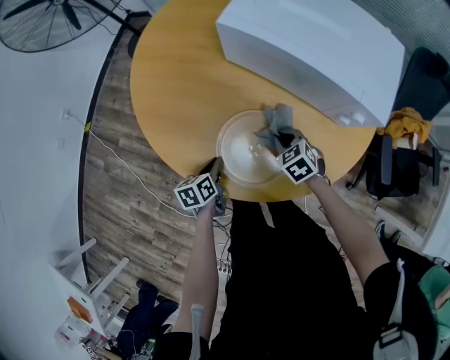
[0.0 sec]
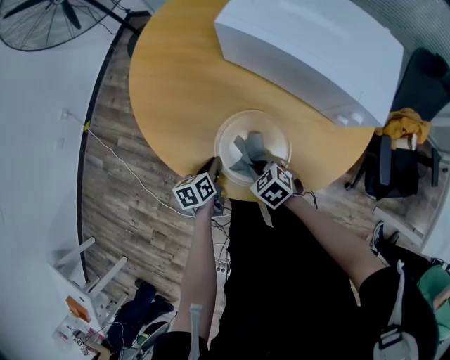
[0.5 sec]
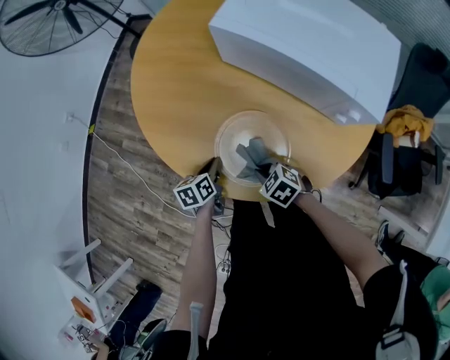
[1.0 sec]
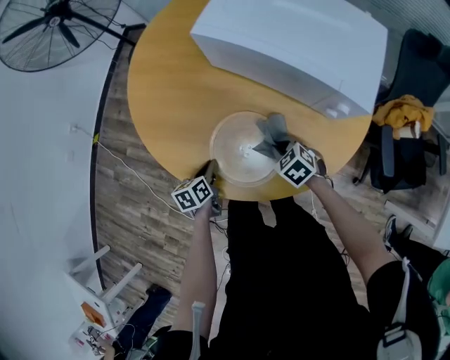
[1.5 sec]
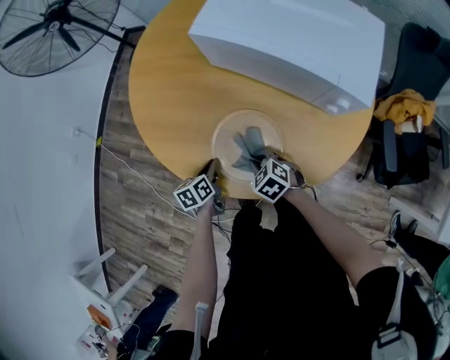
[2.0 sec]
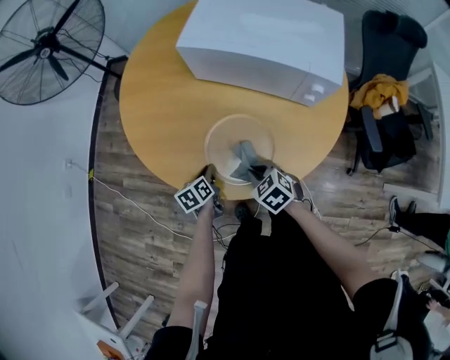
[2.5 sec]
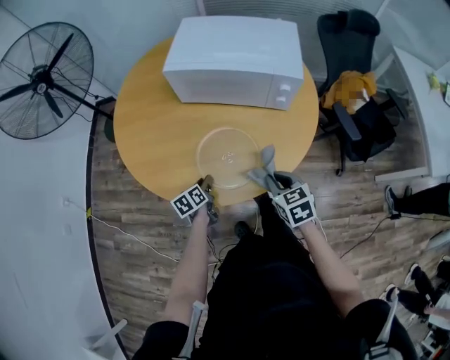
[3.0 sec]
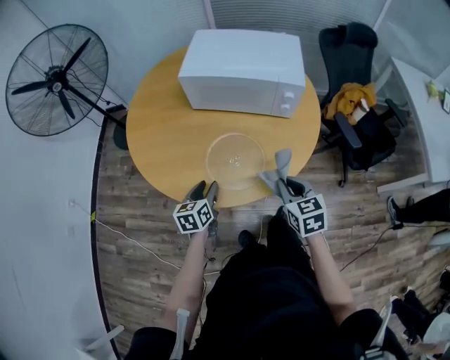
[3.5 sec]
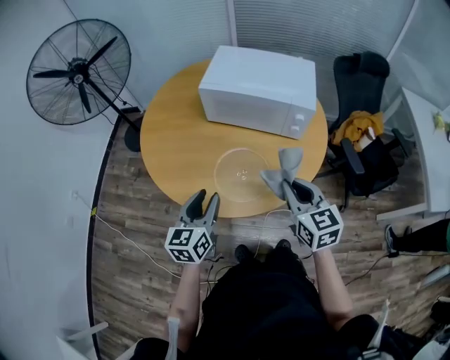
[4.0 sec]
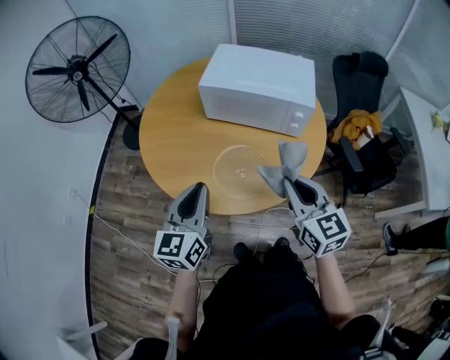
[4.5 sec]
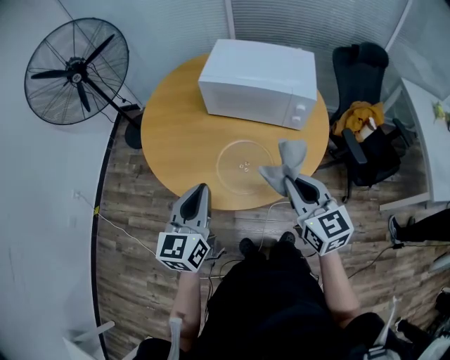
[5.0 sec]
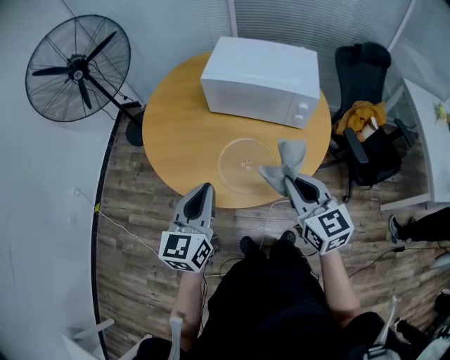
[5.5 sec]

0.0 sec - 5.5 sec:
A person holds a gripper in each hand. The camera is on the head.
0.0 sec - 2.0 sec: The right gripper goes left and right, about 10 cm each way, reversing 2 times.
2.0 sec - 3.5 sec: The right gripper goes approximately 20 cm upward, and turns by about 60 degrees. Meanwhile the left gripper heads upward, covering approximately 15 cm, turns by approximately 30 degrees, and opens.
3.5 sec - 5.5 sec: The left gripper shifts approximately 25 cm upward, turns by about 30 degrees, and closes up; the right gripper moves upward, some 15 cm, and swivels roughly 20 degrees.

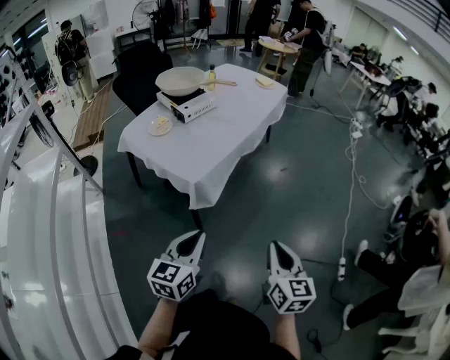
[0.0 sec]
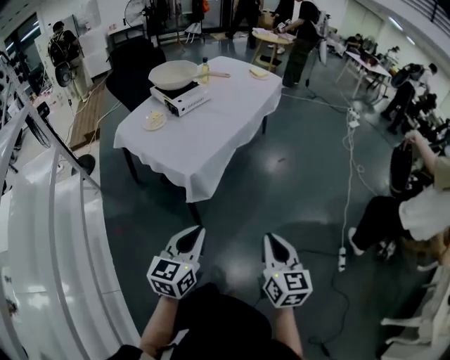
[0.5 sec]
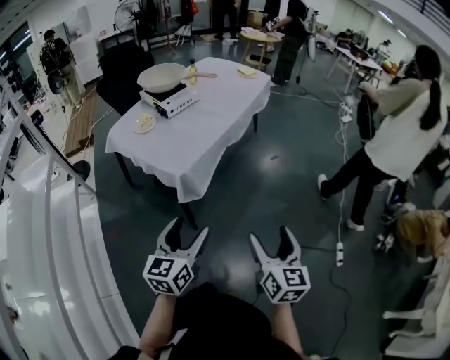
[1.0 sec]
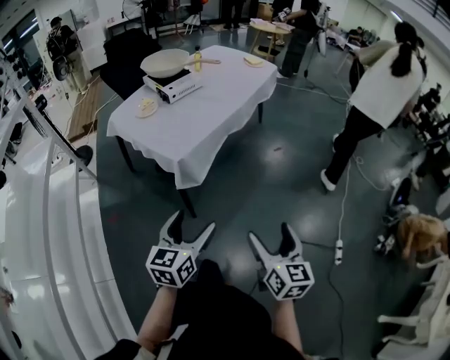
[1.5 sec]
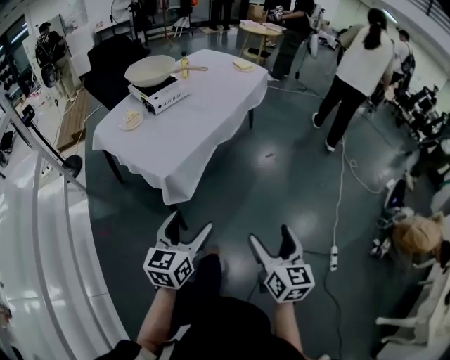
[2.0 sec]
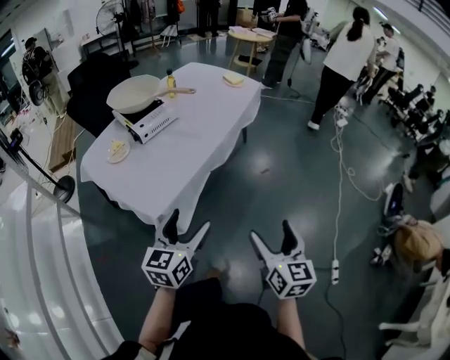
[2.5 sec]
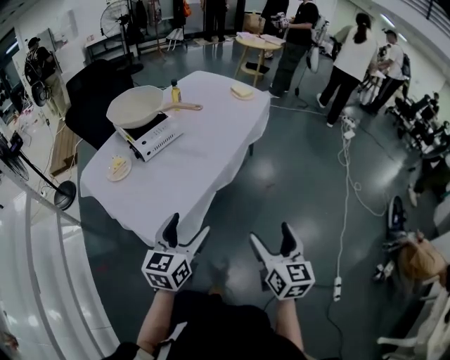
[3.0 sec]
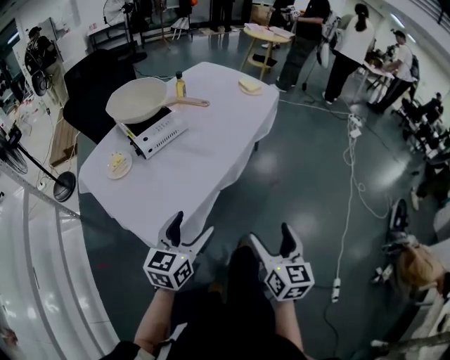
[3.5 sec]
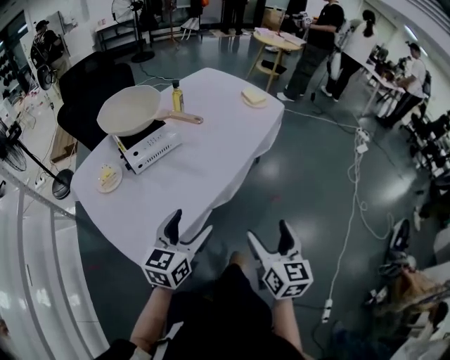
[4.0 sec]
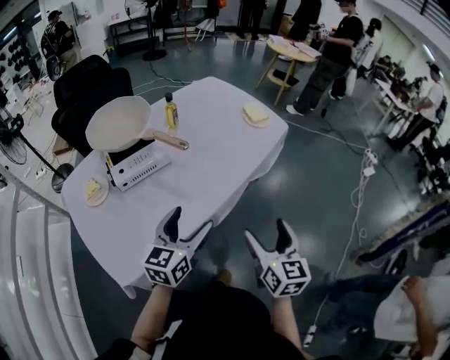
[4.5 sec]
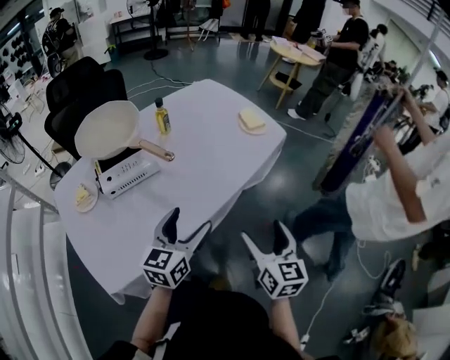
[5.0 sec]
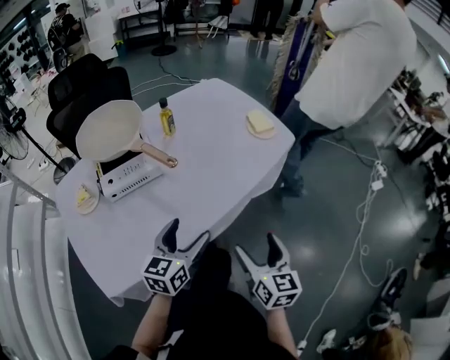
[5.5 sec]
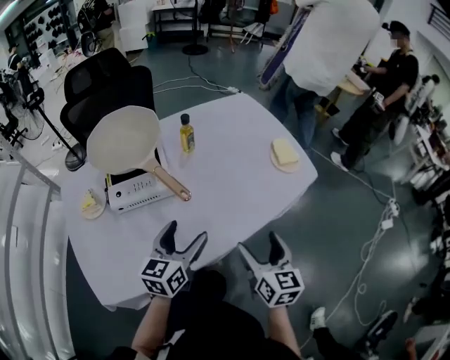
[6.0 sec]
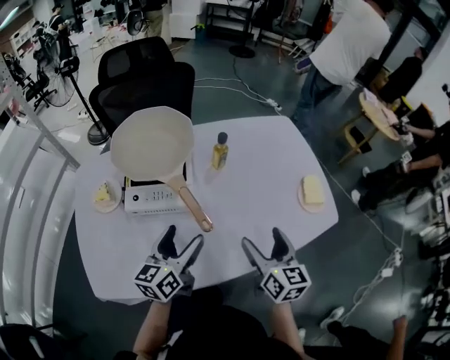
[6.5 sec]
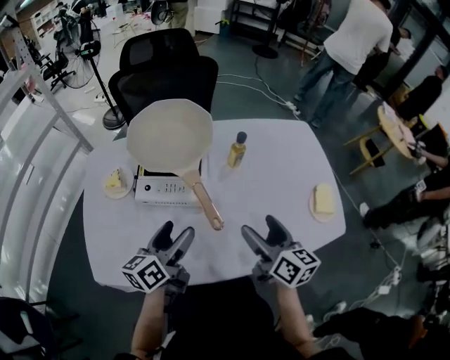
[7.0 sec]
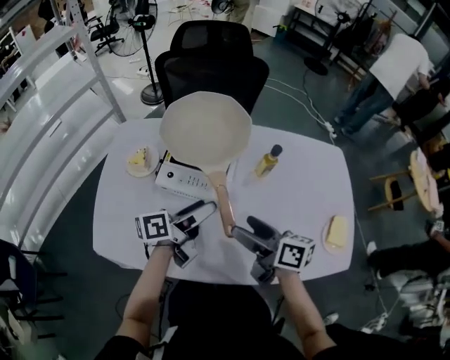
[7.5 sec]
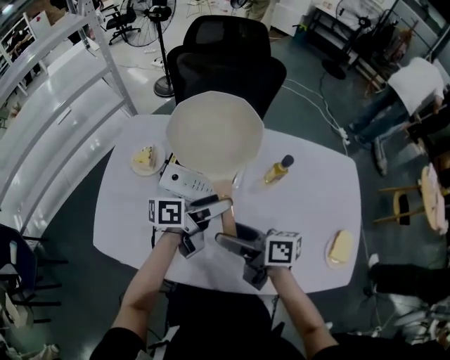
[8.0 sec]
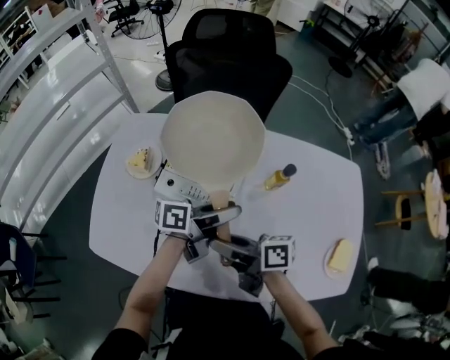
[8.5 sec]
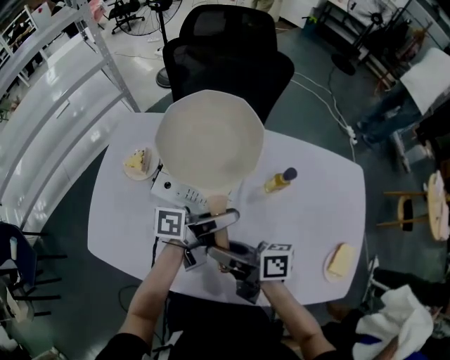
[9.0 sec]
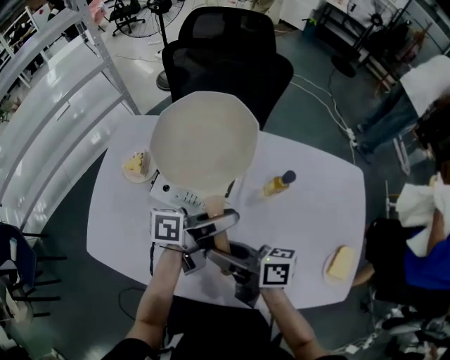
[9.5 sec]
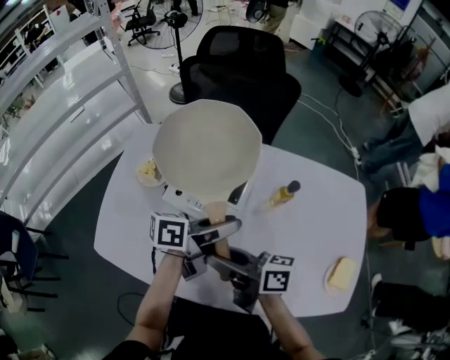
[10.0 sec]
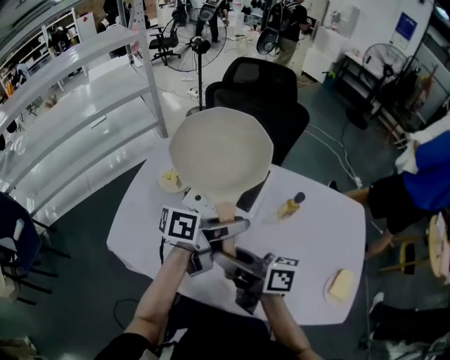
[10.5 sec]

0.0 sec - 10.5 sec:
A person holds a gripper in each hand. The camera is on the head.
0.0 sec - 2.0 sec: The right gripper travels to the right and forward by approximately 10 cm, and opens; the left gripper travels forward and to the right by roughly 10 cm, and opens.
2.0 sec - 4.0 sec: Both grippers are carried forward, some 40 cm.
4.0 sec - 6.5 sec: The left gripper changes place by roughly 35 cm, and rotates about 40 degrees, while the right gripper ends up roughly 50 cm from where it was, and changes its angle by about 40 degrees.
6.5 sec - 8.5 sec: The right gripper moves some 20 cm, swivels about 80 degrees, and closes; the left gripper changes place by approximately 15 cm, and changes its angle by some 40 degrees.
8.5 sec - 10.5 sec: The two grippers go roughly 10 cm upward.

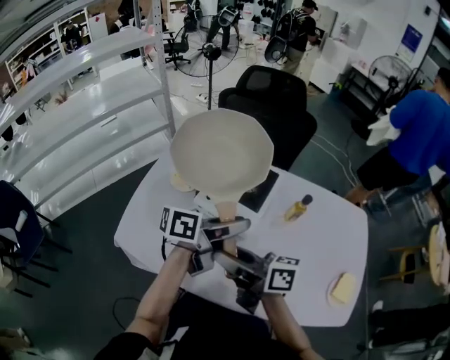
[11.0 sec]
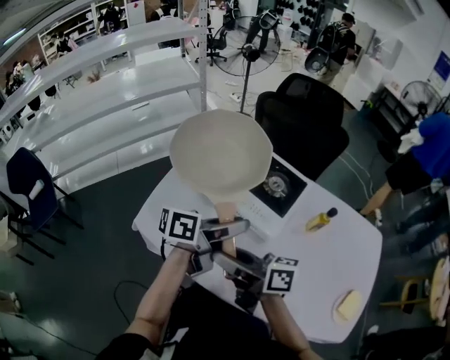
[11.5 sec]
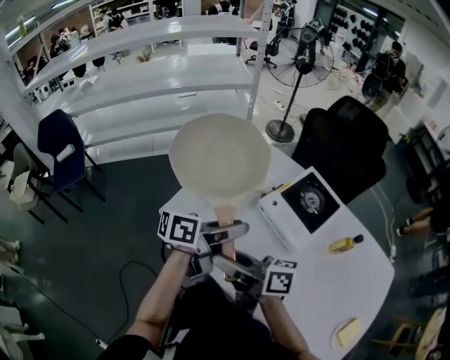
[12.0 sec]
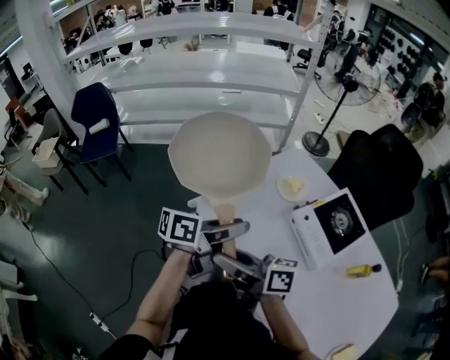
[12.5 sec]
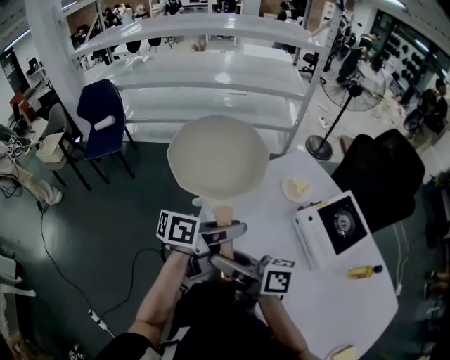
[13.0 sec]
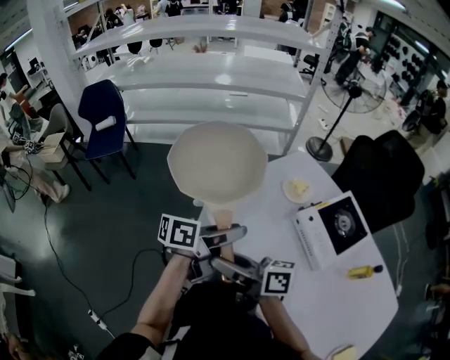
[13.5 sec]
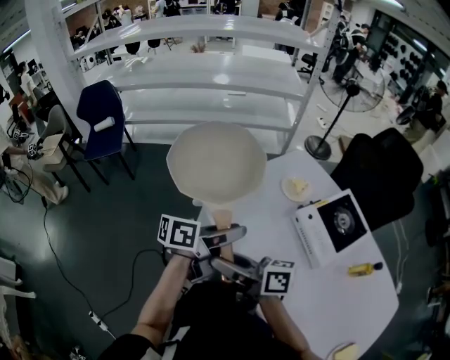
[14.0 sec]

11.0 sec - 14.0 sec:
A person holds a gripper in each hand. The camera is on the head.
11.0 sec - 12.5 sec: The left gripper changes place by some 30 cm, and rotates some 40 degrees. The right gripper moves approximately 25 cm, and rotates about 40 degrees.
12.5 sec - 14.0 sec: The grippers move only a little.

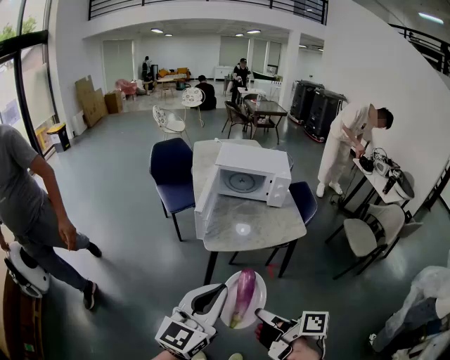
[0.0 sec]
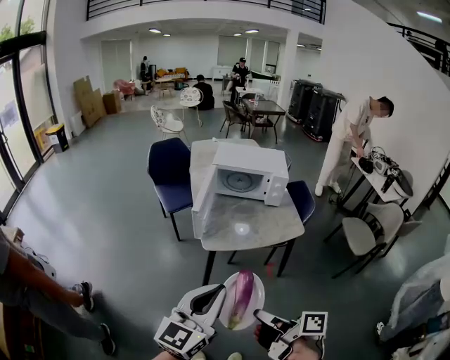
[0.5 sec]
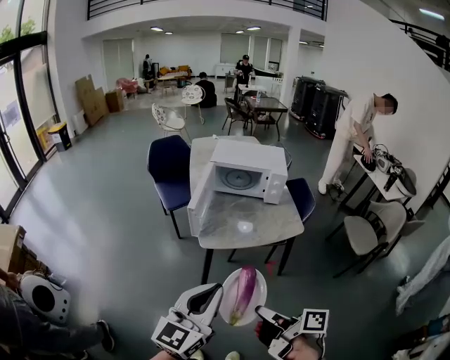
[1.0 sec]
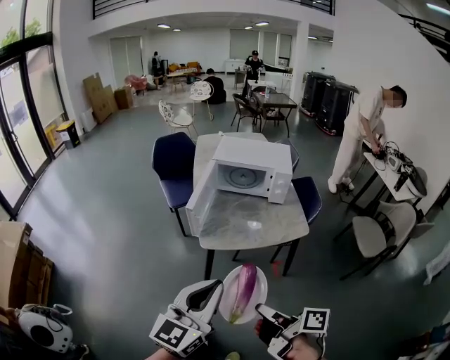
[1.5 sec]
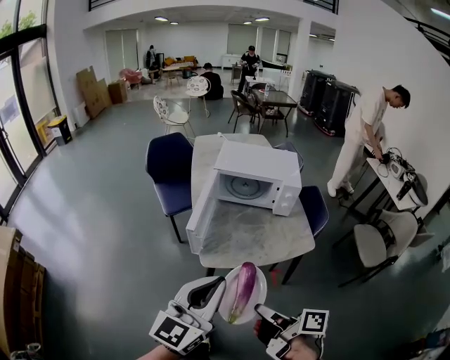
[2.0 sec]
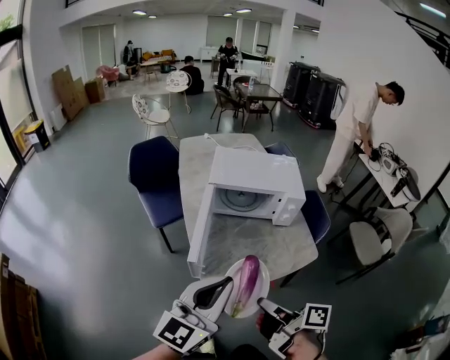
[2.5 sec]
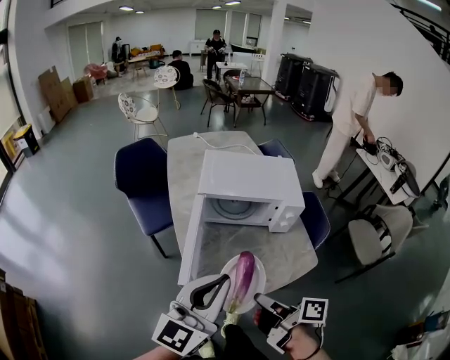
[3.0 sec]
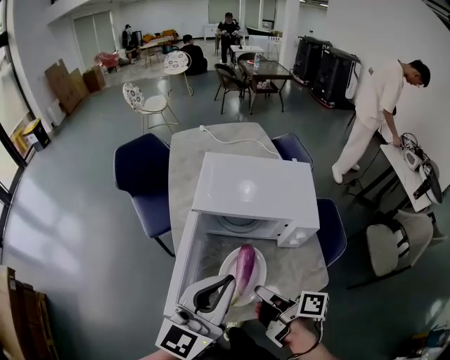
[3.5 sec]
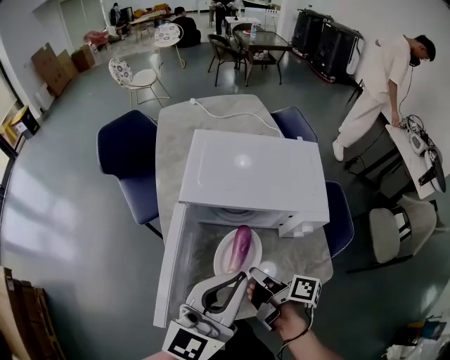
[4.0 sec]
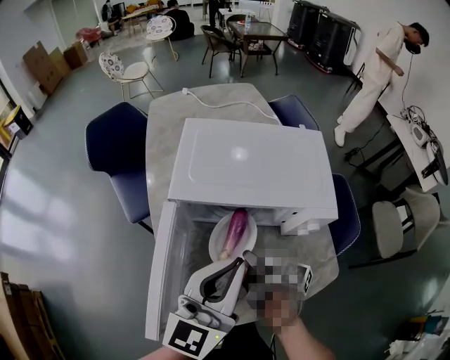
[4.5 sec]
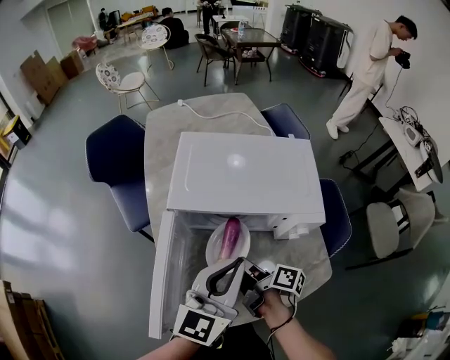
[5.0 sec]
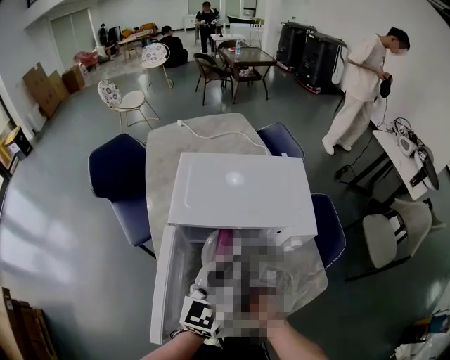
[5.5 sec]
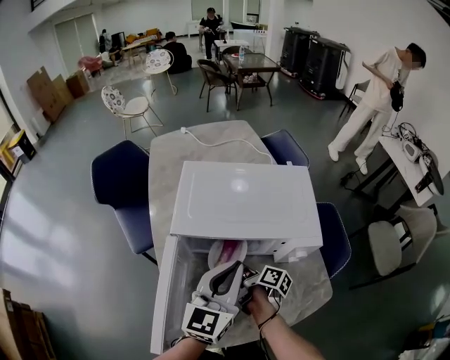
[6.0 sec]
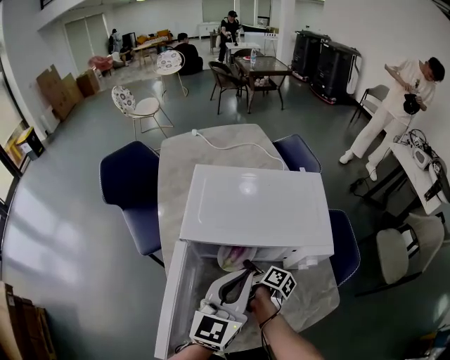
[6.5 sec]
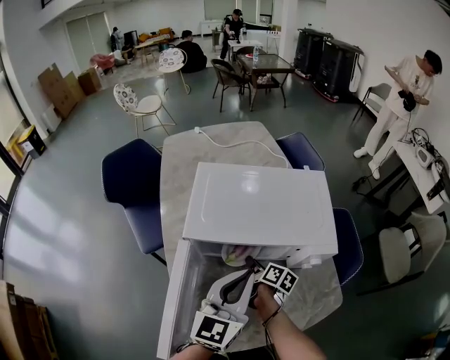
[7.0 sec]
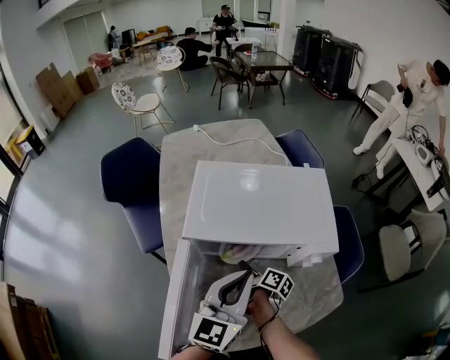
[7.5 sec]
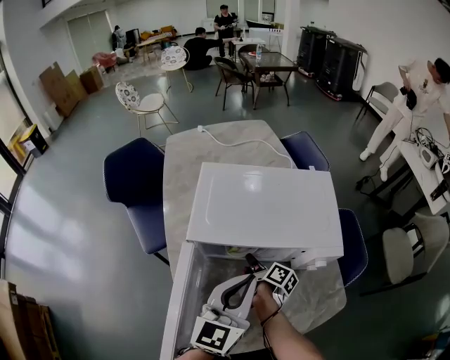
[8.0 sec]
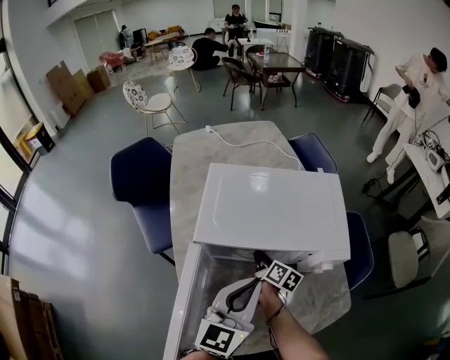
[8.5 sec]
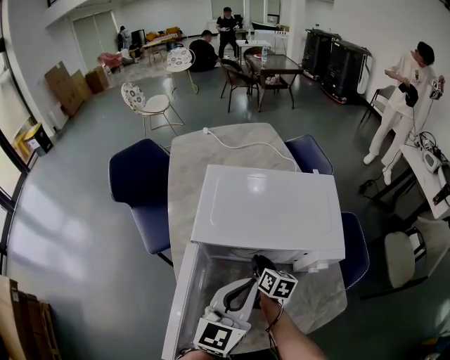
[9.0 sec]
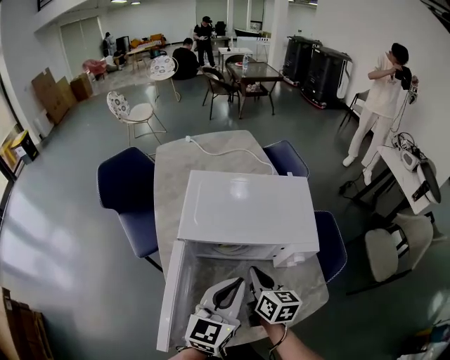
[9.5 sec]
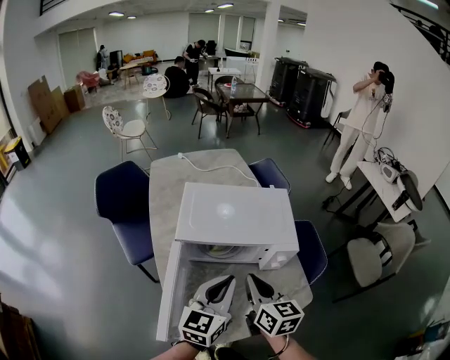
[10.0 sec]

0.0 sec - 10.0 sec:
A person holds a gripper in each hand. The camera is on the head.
0.0 sec - 2.0 sec: The left gripper changes place by about 15 cm.
2.0 sec - 4.0 sec: The left gripper changes place by about 40 cm.
4.0 sec - 6.0 sec: The left gripper moves approximately 15 cm.
8.0 sec - 10.0 sec: The left gripper moves some 10 cm.
